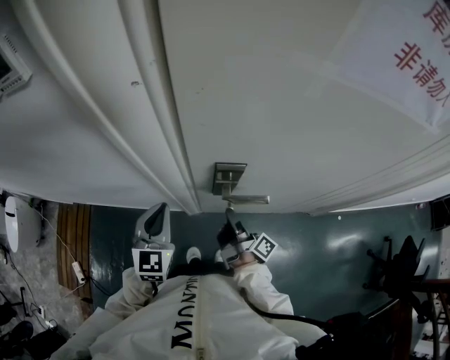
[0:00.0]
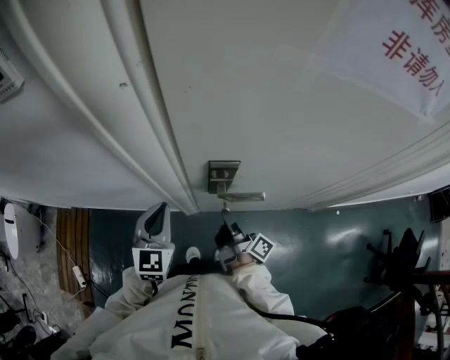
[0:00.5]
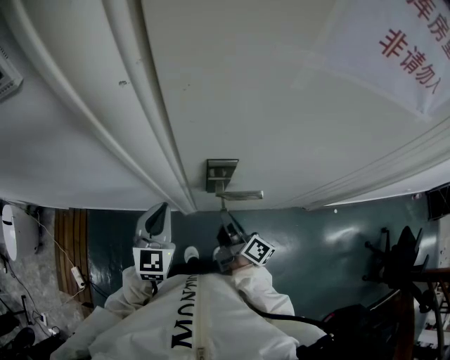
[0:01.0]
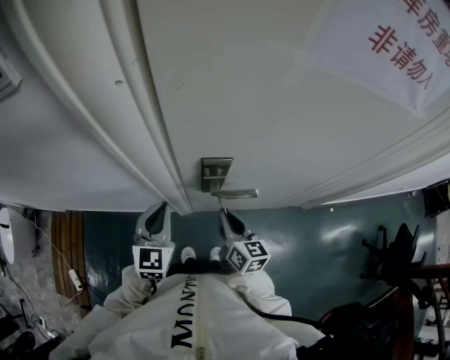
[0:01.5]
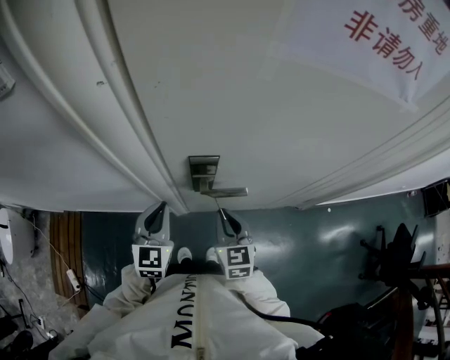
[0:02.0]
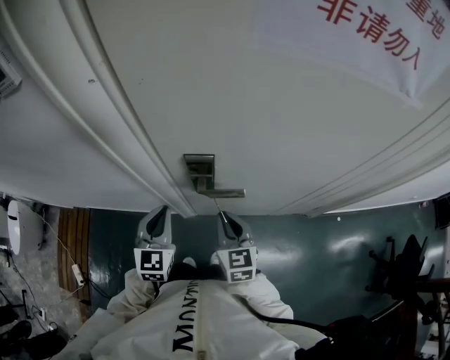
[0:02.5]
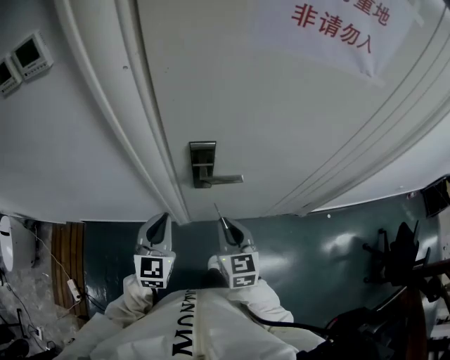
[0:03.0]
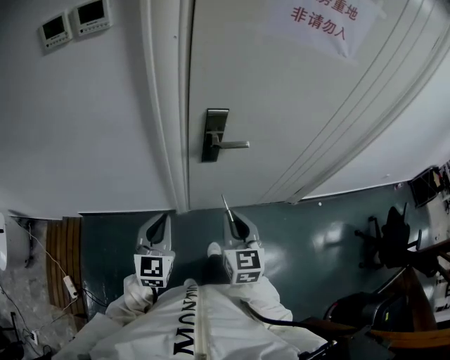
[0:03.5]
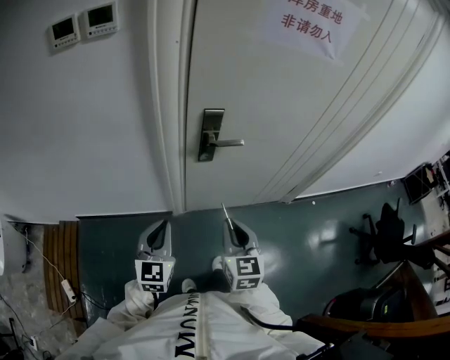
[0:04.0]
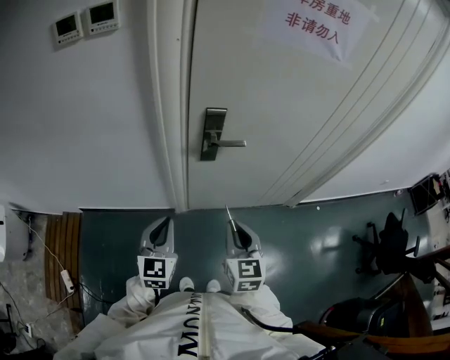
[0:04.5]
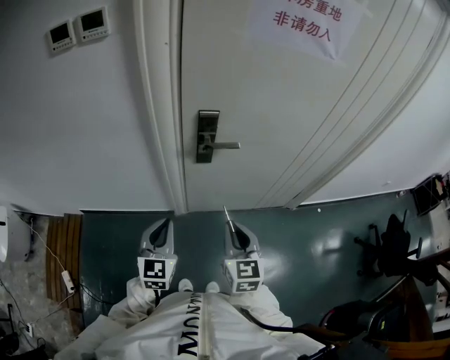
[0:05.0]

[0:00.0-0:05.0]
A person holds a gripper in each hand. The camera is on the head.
0:00.0 to 0:02.5: The right gripper is displaced upward by roughly 5 cm, and rotates around the line of its fingers by roughly 80 degrees, counterclockwise from behind, while the left gripper travels to the right by about 5 cm.
0:02.5 to 0:05.0: Both grippers move backward, approximately 25 cm.

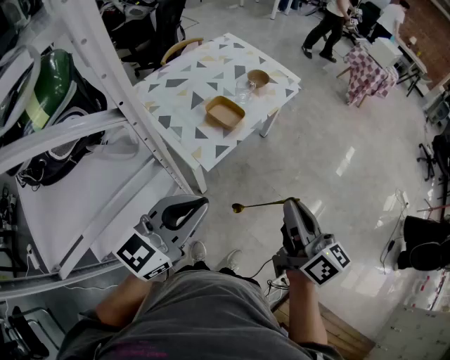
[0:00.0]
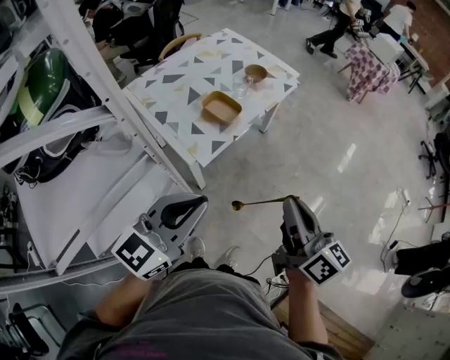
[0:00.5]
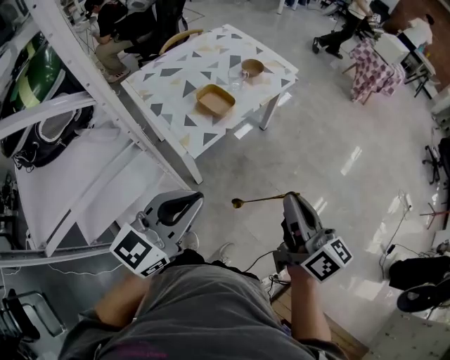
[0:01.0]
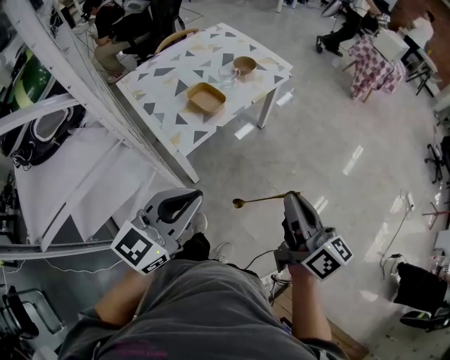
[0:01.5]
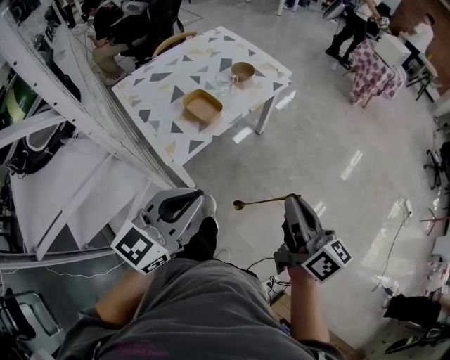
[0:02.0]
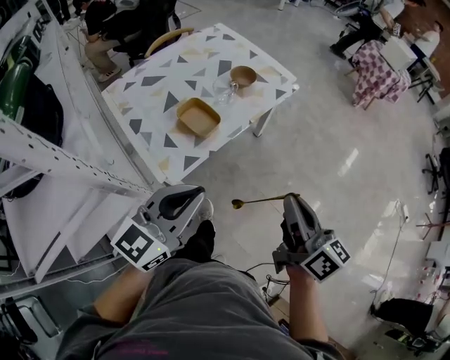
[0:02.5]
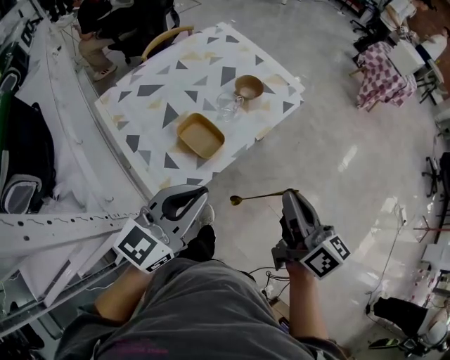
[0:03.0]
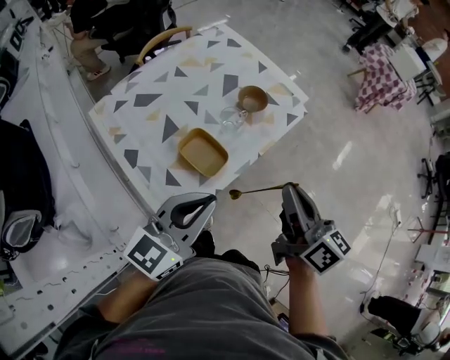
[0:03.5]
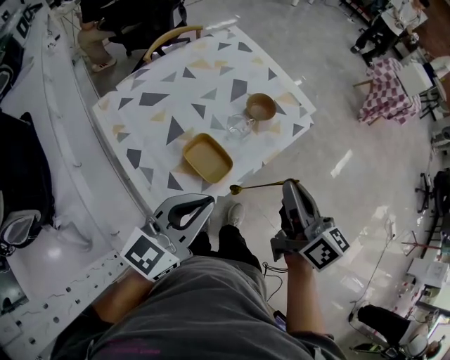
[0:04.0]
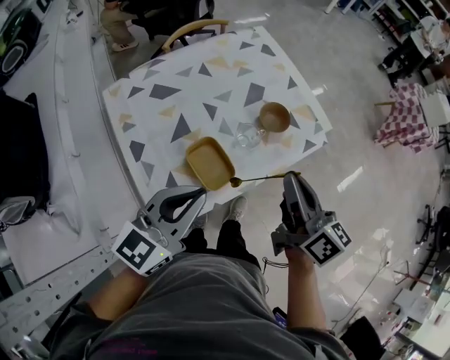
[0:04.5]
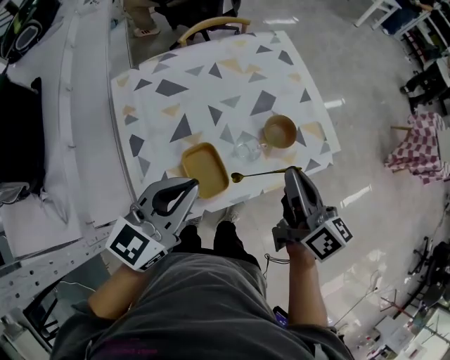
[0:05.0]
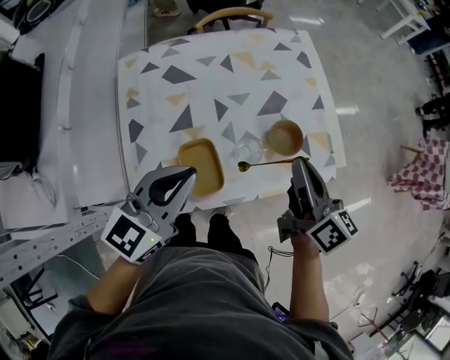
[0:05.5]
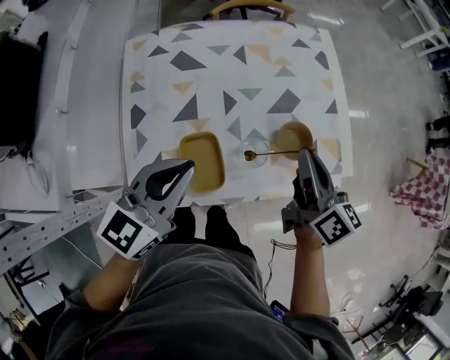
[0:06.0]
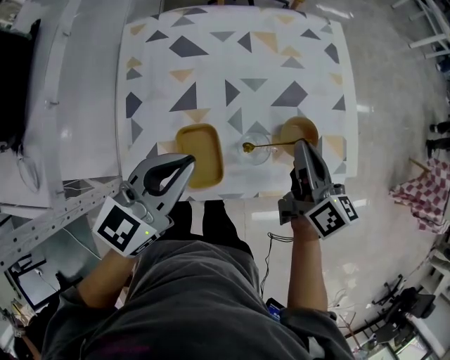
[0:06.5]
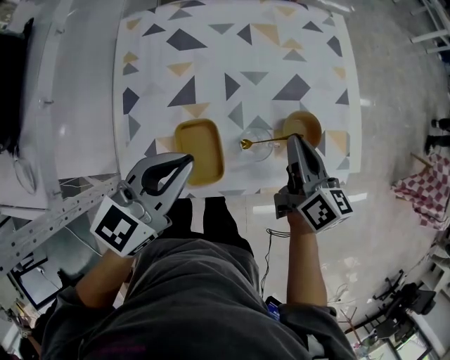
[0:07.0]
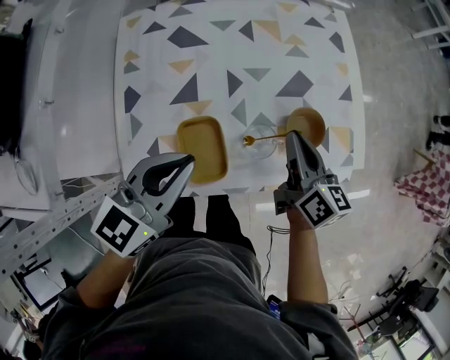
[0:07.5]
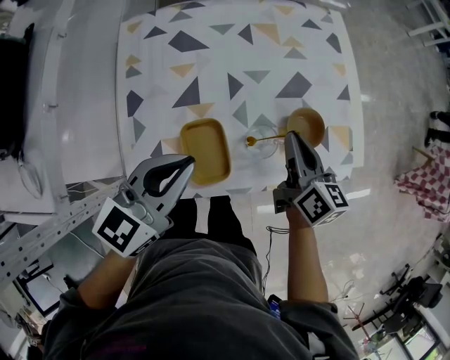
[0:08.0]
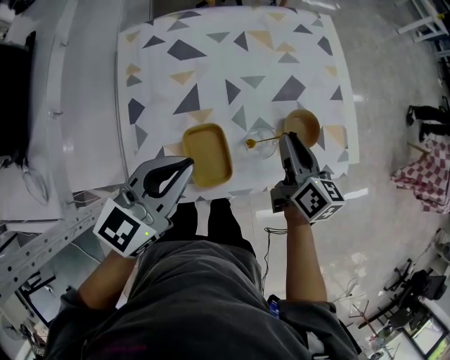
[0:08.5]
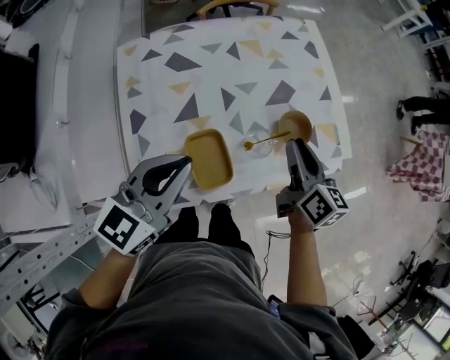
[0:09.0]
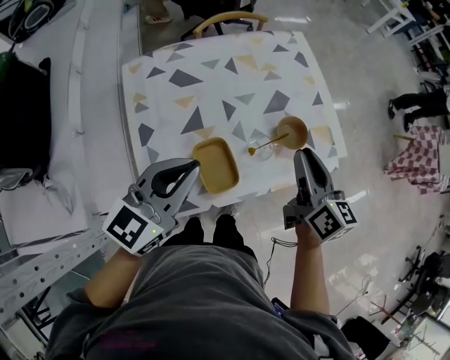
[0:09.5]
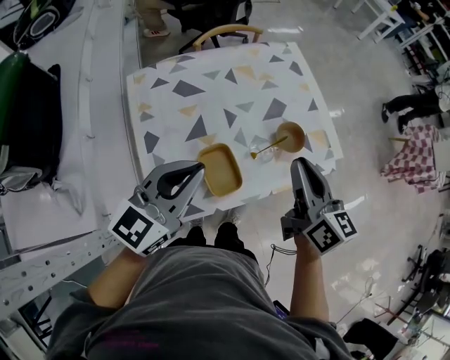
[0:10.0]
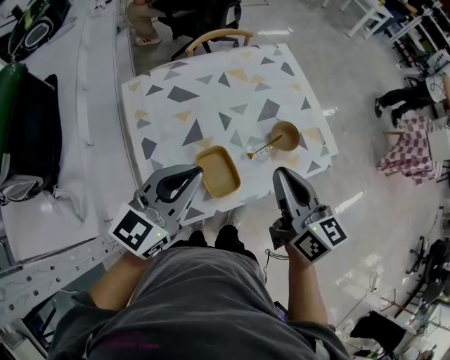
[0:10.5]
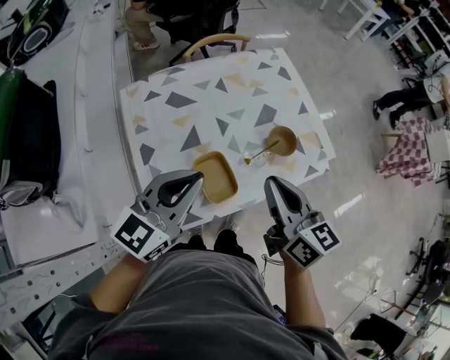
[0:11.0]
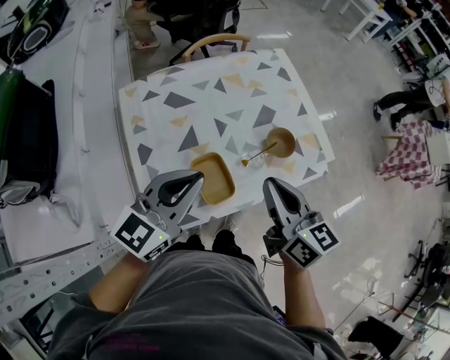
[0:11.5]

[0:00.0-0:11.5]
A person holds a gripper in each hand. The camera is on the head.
0:00.0 to 0:02.0: Both grippers travel together to the right, roughly 10 cm.
0:02.0 to 0:04.0: The left gripper travels forward by roughly 30 cm. Meanwhile the right gripper heads forward and to the left, covering roughly 35 cm.
0:04.0 to 0:06.0: The left gripper changes place by approximately 15 cm, and turns by roughly 40 degrees. The right gripper changes place by some 25 cm, and turns by about 30 degrees.
0:06.0 to 0:07.5: The right gripper goes approximately 10 cm downward.
0:07.5 to 0:09.5: The right gripper goes approximately 15 cm upward and backward; the left gripper moves upward, about 10 cm.
0:09.5 to 0:11.5: The right gripper goes approximately 10 cm backward and to the left.

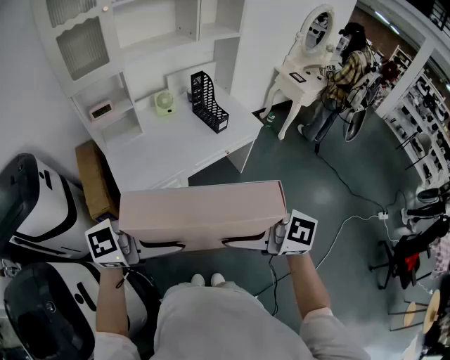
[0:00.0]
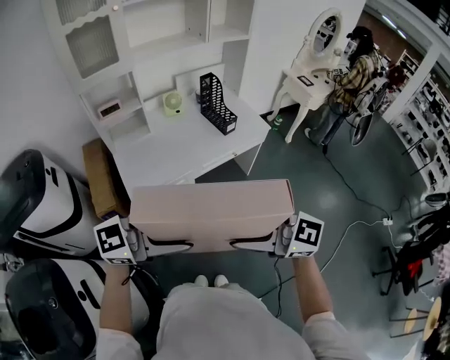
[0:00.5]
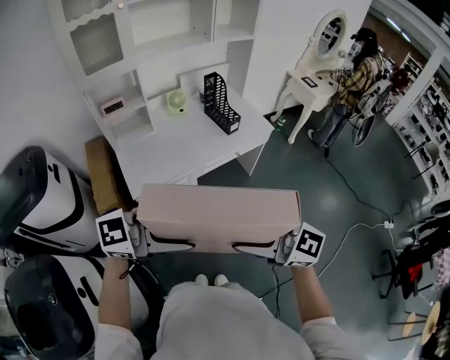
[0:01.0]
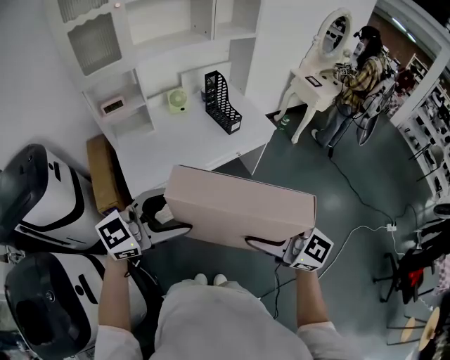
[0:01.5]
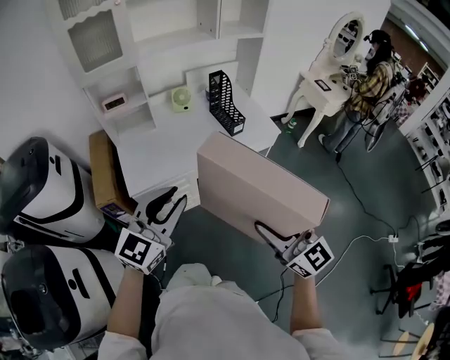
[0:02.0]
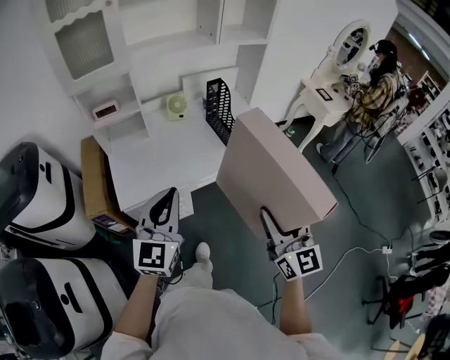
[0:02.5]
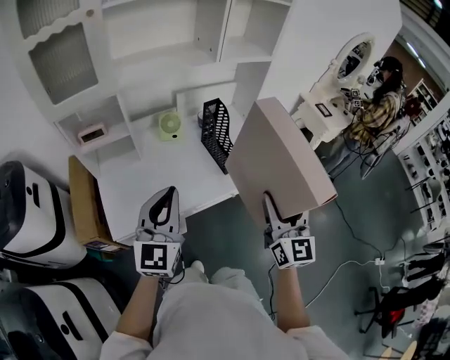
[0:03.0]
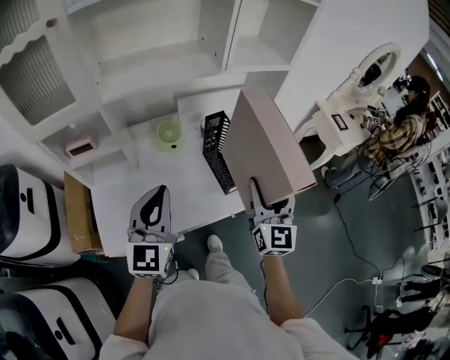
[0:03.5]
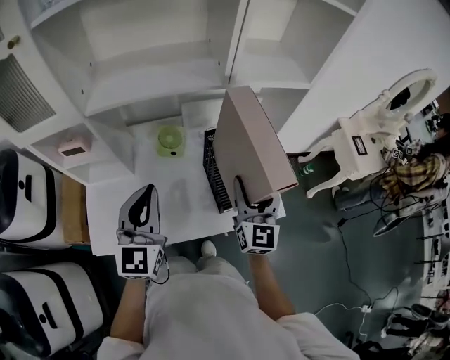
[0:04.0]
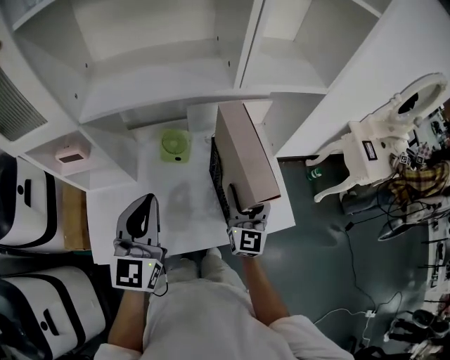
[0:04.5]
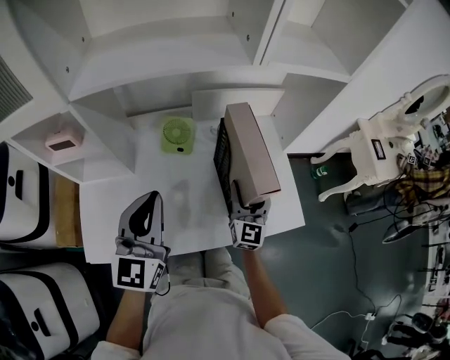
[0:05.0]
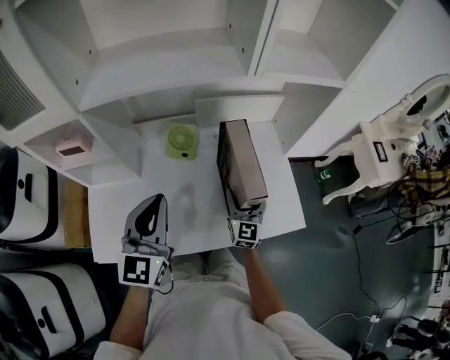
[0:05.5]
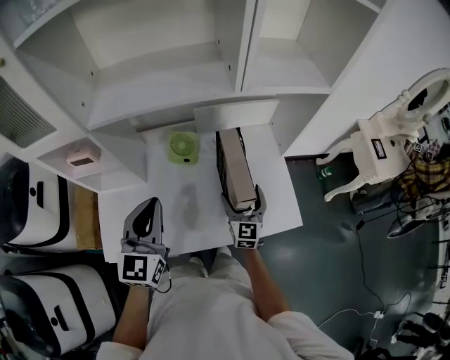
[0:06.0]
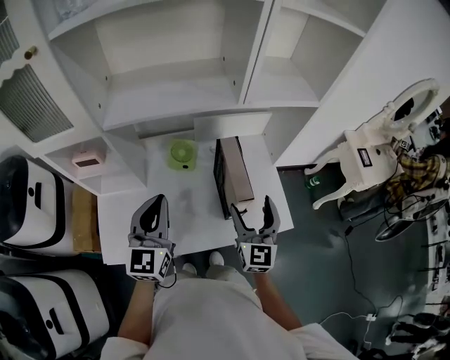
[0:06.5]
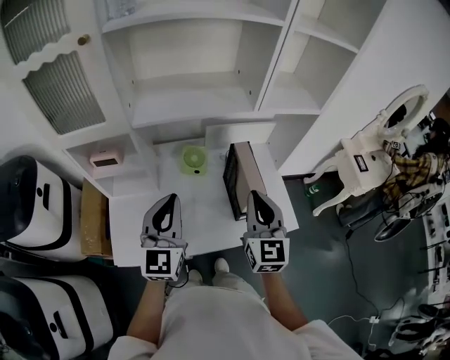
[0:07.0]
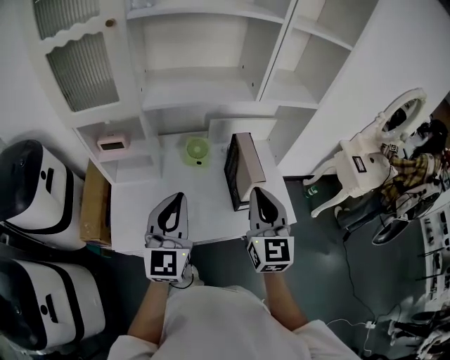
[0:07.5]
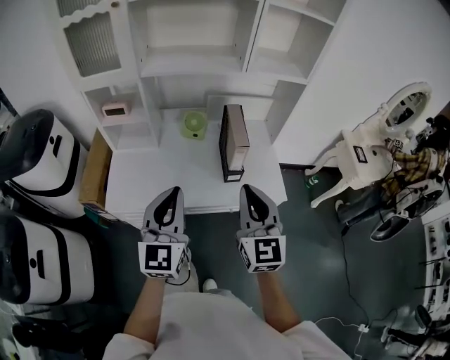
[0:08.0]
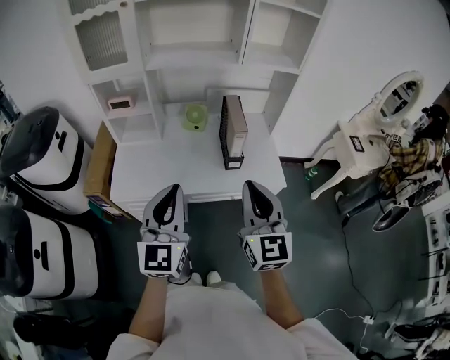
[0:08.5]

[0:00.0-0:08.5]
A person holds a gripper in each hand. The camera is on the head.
0:00.0 to 0:02.0: The right gripper changes place by about 15 cm, and swivels some 30 degrees. Meanwhile the left gripper moves about 10 cm, rotates about 50 degrees, and closes its fingers.
0:02.0 to 0:04.0: Both grippers are carried forward, approximately 60 cm. The right gripper rotates some 20 degrees, while the left gripper turns by about 40 degrees.
0:04.0 to 0:06.5: The right gripper reaches about 25 cm downward, then returns; the left gripper goes downward and returns, roughly 10 cm each way.
0:06.5 to 0:08.5: The left gripper heads backward, covering roughly 35 cm. Meanwhile the right gripper is displaced backward and upward by about 35 cm, and closes up.

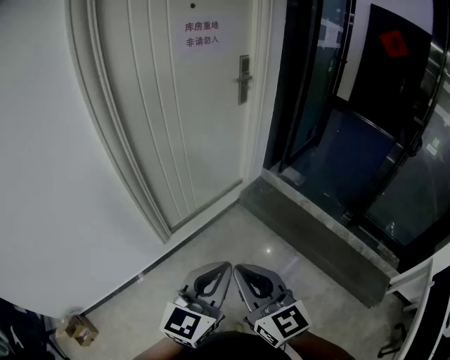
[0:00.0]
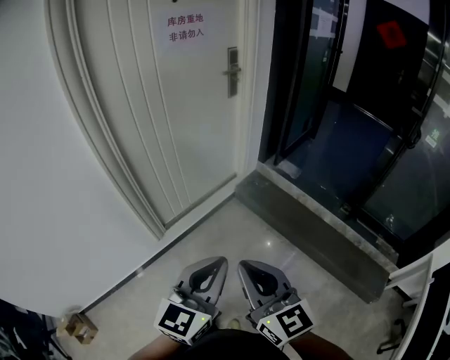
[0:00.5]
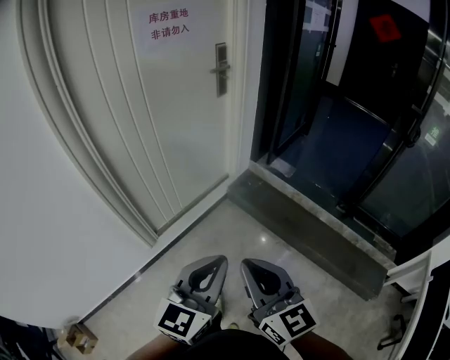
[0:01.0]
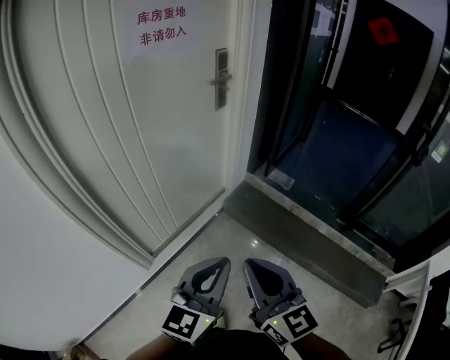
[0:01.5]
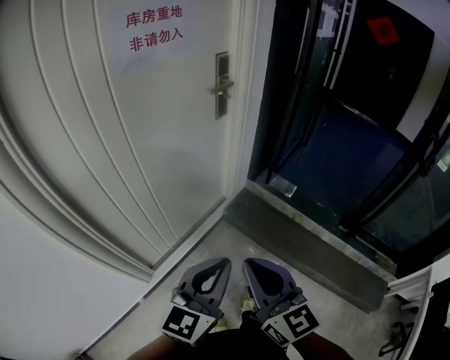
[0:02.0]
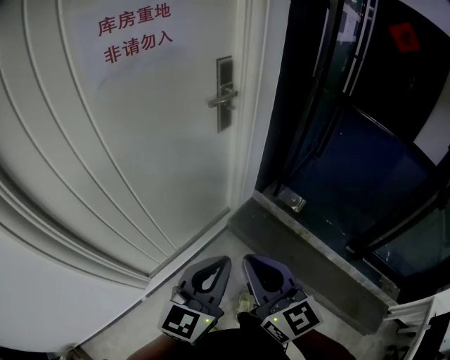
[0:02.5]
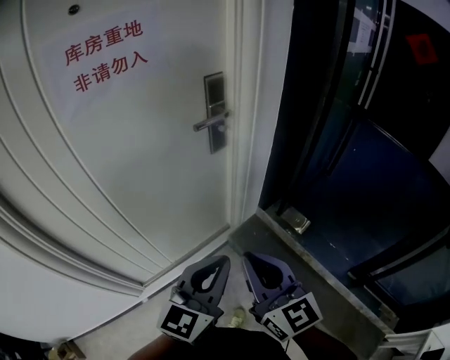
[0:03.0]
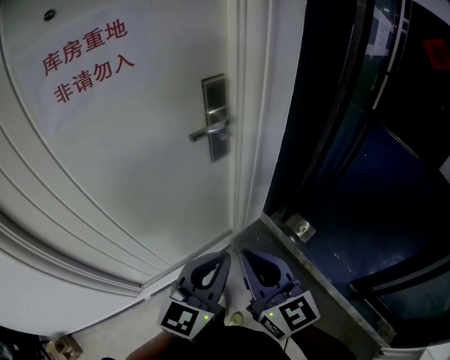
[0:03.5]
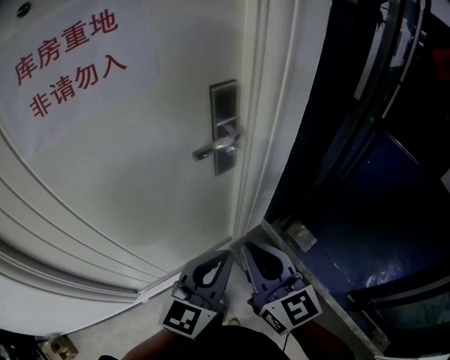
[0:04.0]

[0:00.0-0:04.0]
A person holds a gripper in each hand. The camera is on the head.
0:00.0 to 0:02.0: Both grippers move forward, some 30 cm.
0:02.0 to 0:04.0: The grippers both shift forward by approximately 35 cm.
